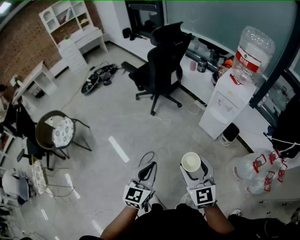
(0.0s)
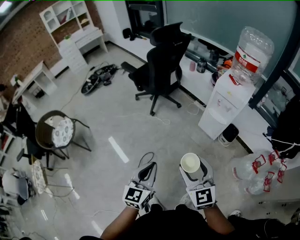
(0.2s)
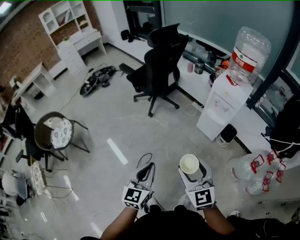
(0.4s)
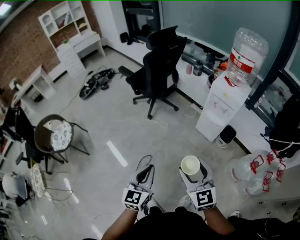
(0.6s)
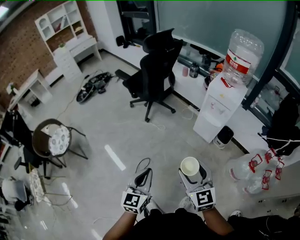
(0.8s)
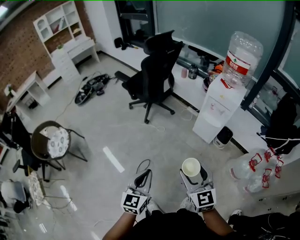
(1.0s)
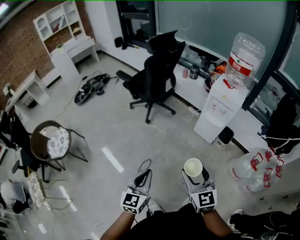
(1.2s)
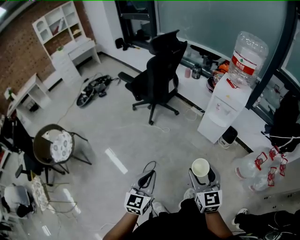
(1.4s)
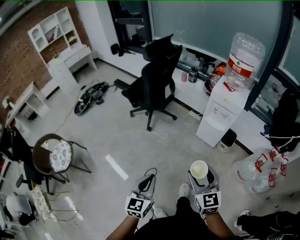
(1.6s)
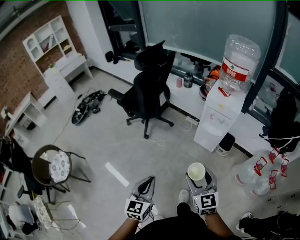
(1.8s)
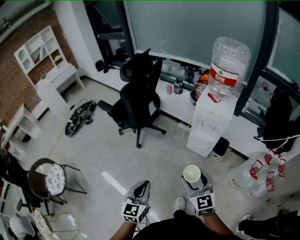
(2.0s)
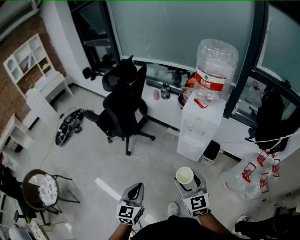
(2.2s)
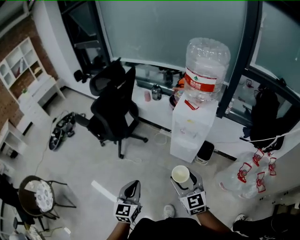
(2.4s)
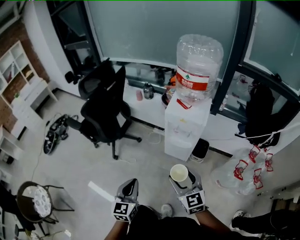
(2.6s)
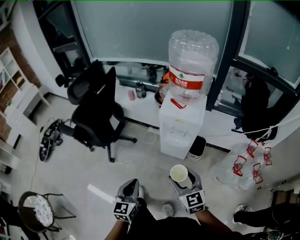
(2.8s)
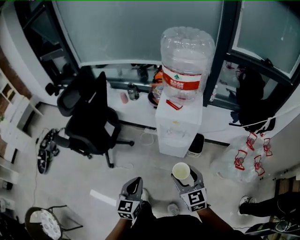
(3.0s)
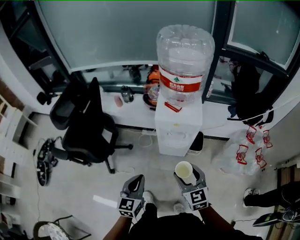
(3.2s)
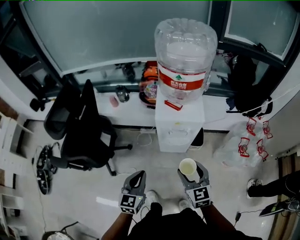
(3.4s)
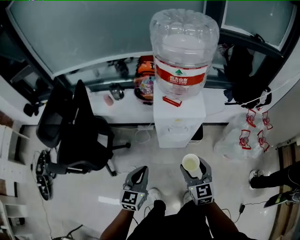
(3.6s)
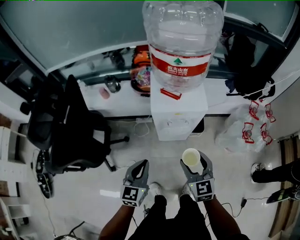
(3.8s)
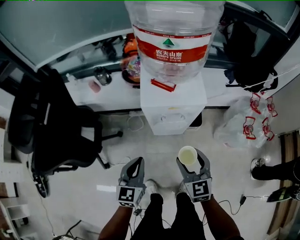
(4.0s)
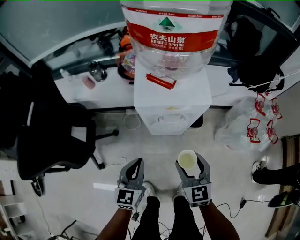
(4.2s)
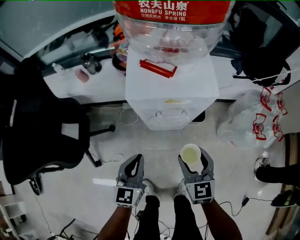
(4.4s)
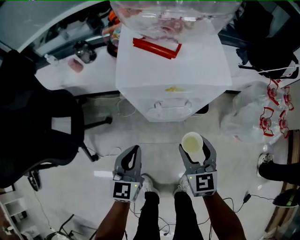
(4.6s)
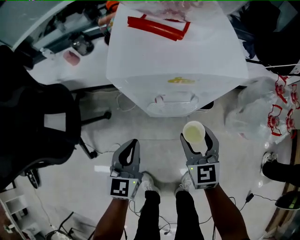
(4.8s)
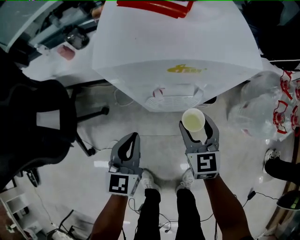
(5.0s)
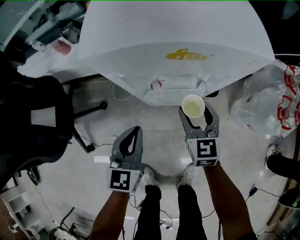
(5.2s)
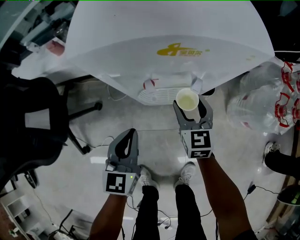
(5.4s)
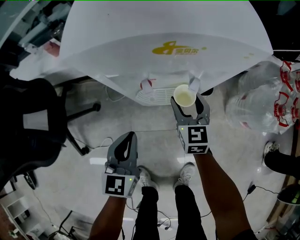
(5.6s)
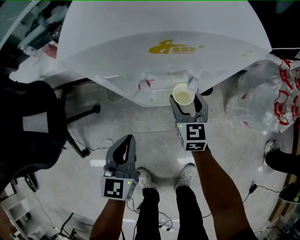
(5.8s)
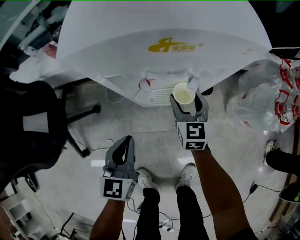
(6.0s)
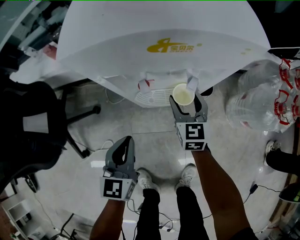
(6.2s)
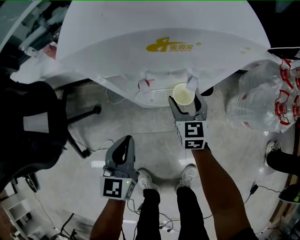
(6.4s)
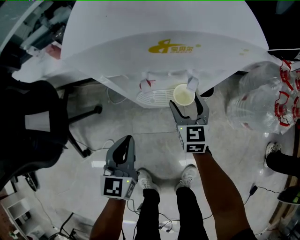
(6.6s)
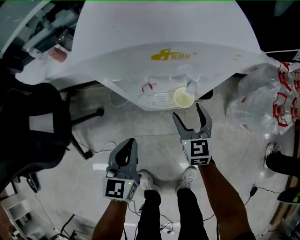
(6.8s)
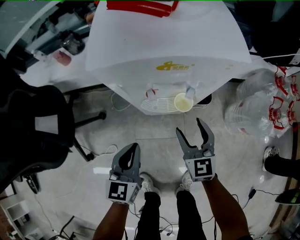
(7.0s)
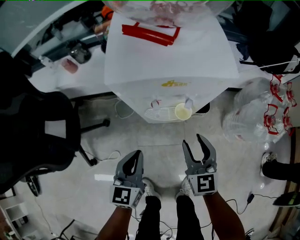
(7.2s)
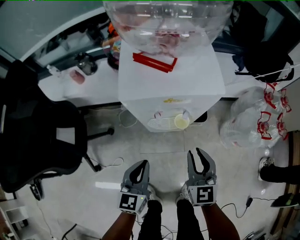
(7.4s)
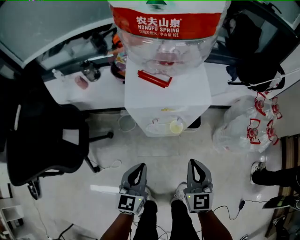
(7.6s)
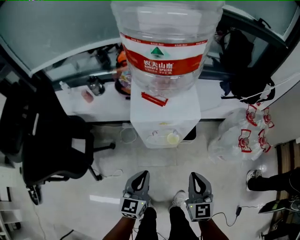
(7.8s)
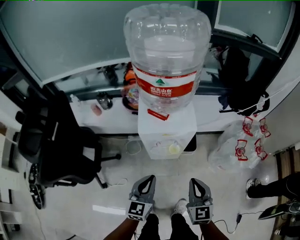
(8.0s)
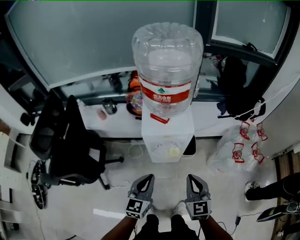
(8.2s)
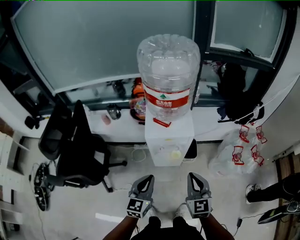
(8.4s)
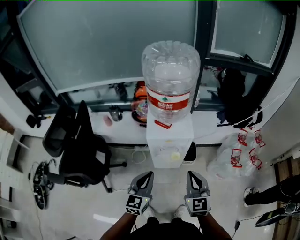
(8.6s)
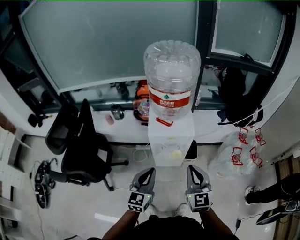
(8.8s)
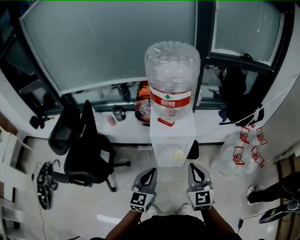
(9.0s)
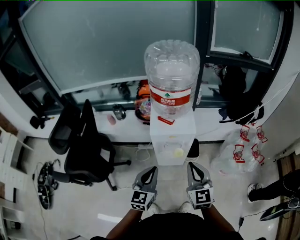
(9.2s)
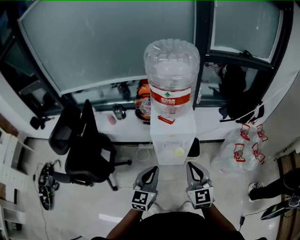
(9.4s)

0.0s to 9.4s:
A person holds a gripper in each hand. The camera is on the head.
0.0s to 1.6s: The left gripper goes some 5 cm to the left.
1.6s to 3.2s: The left gripper shifts roughly 40 cm forward, and swivels some 30 degrees; the right gripper shifts roughly 35 cm forward and to the right, and rotates some 20 degrees.
3.2s to 4.8s: The grippers both shift downward and forward by roughly 30 cm.
4.8s to 6.2s: The left gripper heads downward, covering about 5 cm; the right gripper heads downward and forward, covering roughly 15 cm.
6.2s to 7.8s: The right gripper heads upward and backward, covering some 35 cm, and closes, while the left gripper is displaced upward by approximately 20 cm.
7.8s to 9.4s: The two grippers go about 20 cm upward.

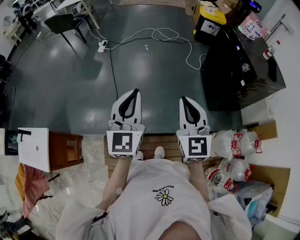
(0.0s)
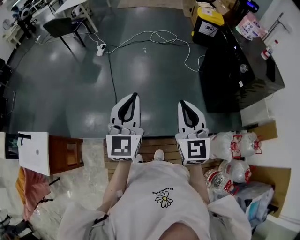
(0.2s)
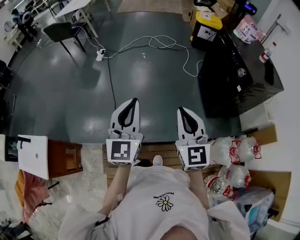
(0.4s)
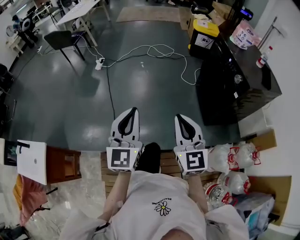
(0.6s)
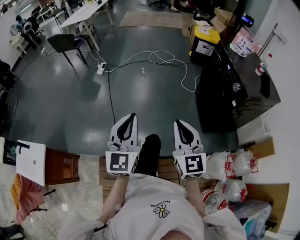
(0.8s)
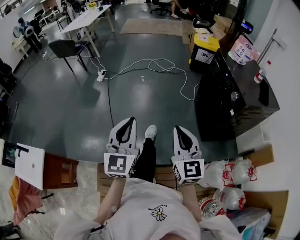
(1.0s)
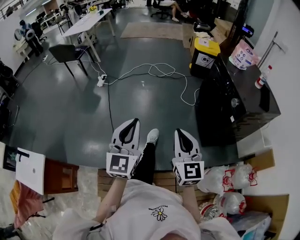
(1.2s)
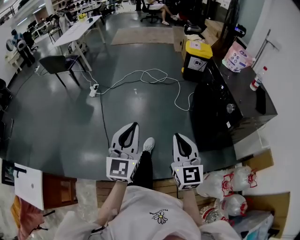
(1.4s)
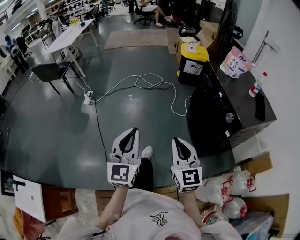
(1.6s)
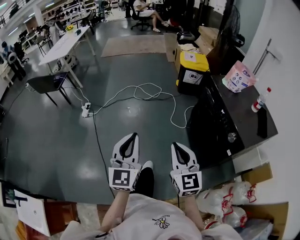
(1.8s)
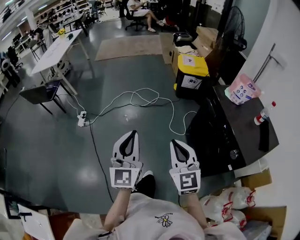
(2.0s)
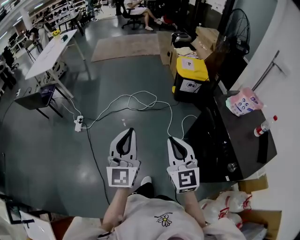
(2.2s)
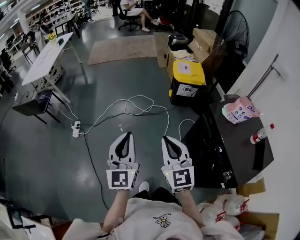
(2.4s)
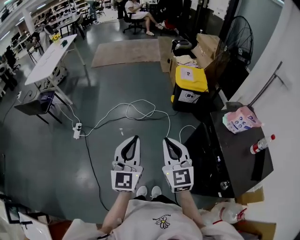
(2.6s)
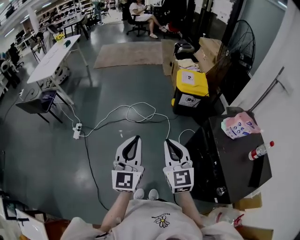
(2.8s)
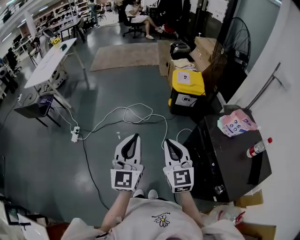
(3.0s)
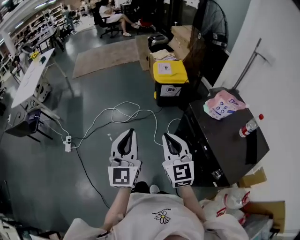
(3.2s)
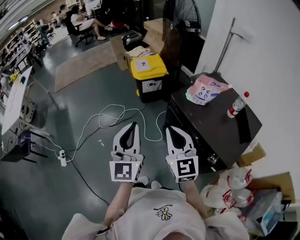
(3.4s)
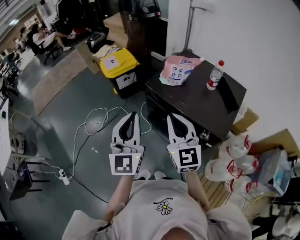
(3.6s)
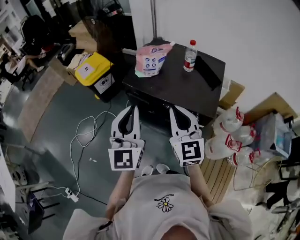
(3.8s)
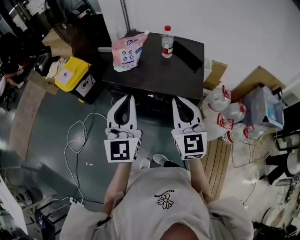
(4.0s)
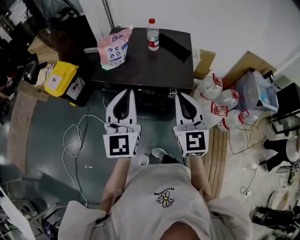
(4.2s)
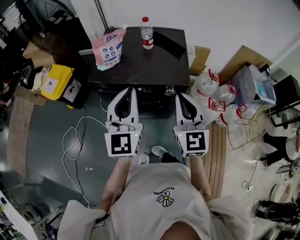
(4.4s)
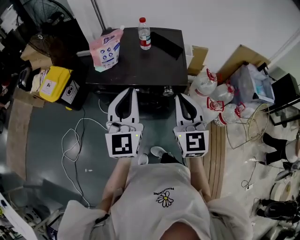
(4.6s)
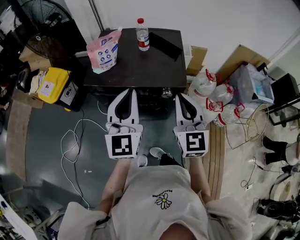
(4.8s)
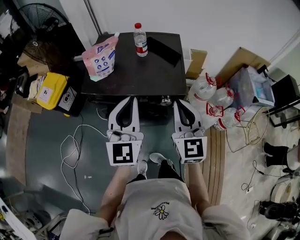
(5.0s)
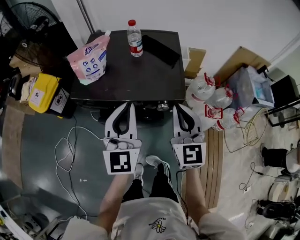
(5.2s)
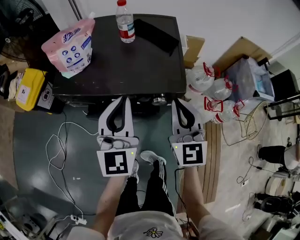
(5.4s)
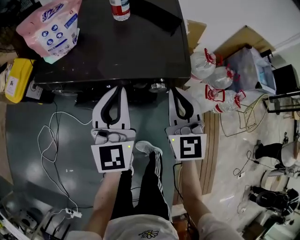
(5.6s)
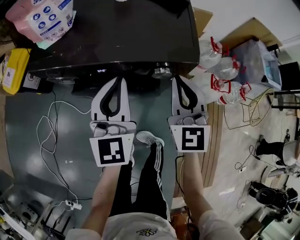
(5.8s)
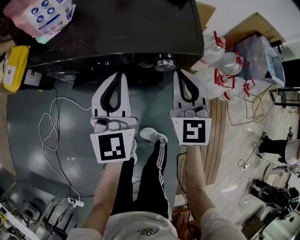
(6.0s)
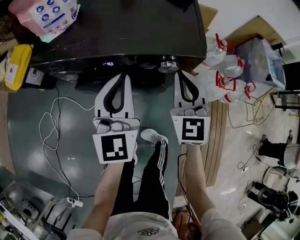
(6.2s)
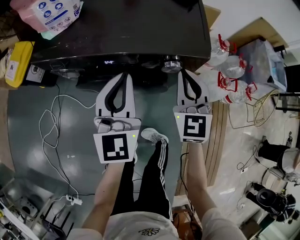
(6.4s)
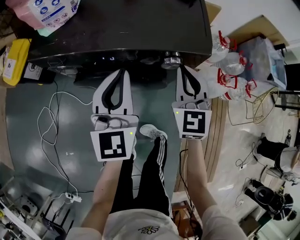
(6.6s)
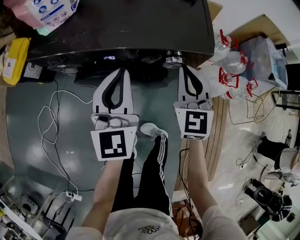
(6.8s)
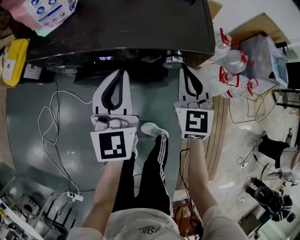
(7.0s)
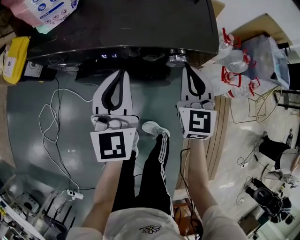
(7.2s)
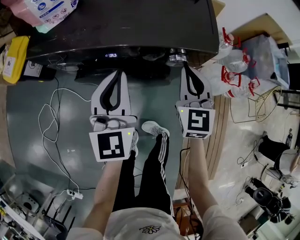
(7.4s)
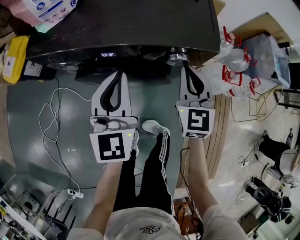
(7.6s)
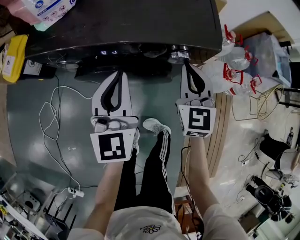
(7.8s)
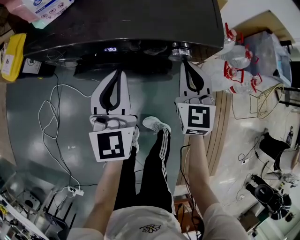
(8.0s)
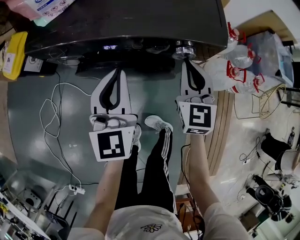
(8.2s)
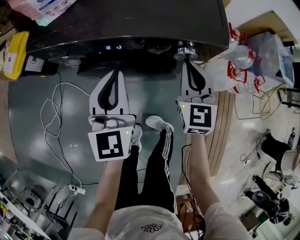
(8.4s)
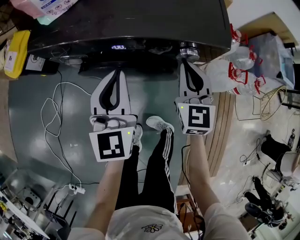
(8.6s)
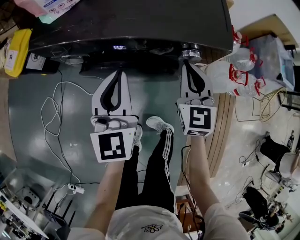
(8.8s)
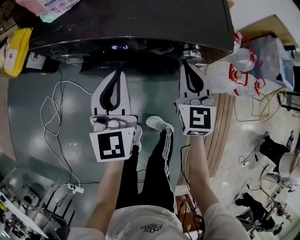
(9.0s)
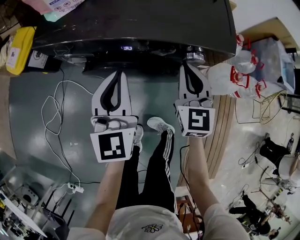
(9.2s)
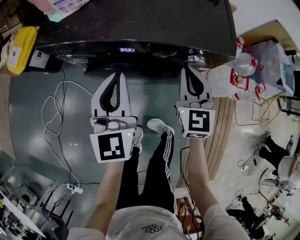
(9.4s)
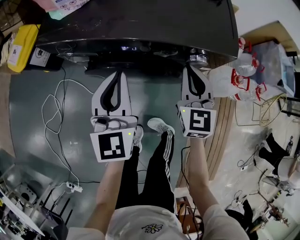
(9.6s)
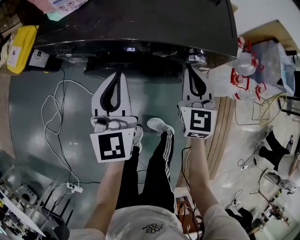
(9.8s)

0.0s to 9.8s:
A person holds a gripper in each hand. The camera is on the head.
0.0s to 1.4s: The two grippers go roughly 15 cm forward and to the right.
1.4s to 2.8s: The pair of grippers is taken forward, about 50 cm.
2.8s to 4.2s: The right gripper moves approximately 35 cm, and turns by approximately 80 degrees. The left gripper shifts by approximately 35 cm, and turns by approximately 70 degrees.
4.2s to 5.6s: The two grippers go approximately 20 cm downward and forward.
5.6s to 7.0s: The grippers both shift downward by roughly 10 cm.
7.0s to 8.4s: There are only small adjustments of the grippers.
8.4s to 9.8s: The grippers stay close to where they were, moving slightly.

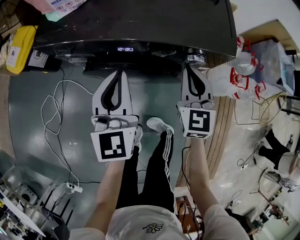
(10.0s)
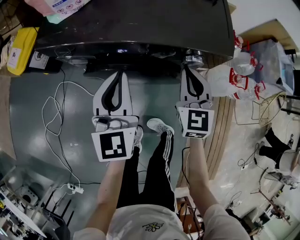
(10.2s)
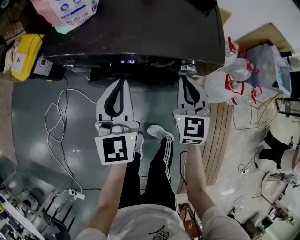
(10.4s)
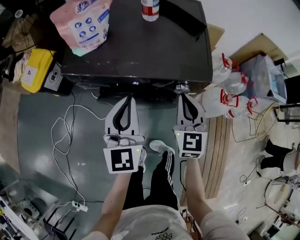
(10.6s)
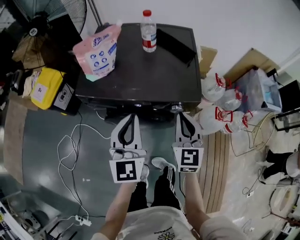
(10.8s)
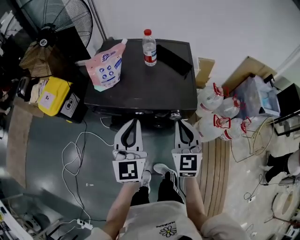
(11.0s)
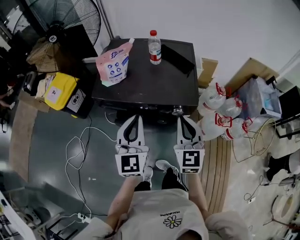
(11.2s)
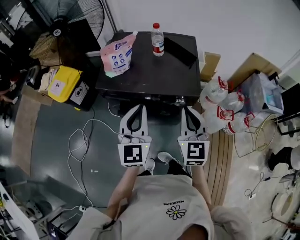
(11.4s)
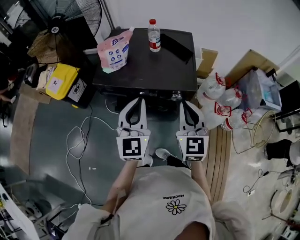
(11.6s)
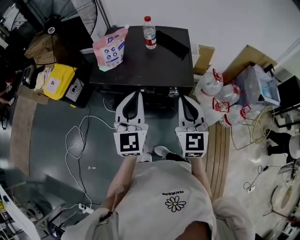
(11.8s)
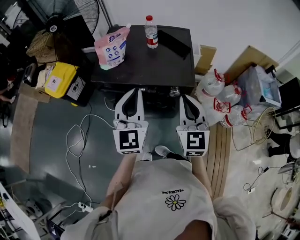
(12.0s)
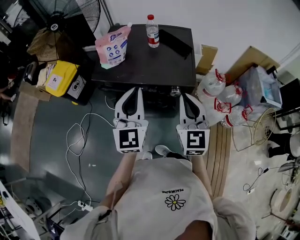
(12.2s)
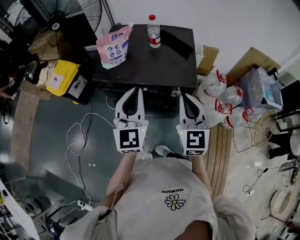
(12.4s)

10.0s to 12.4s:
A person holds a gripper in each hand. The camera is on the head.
10.0s to 11.2s: The two grippers go some 20 cm upward.
11.2s to 12.4s: The grippers move only a little.

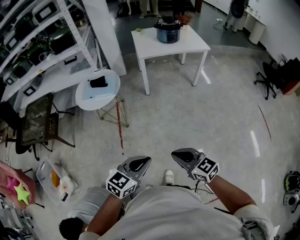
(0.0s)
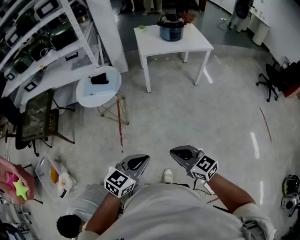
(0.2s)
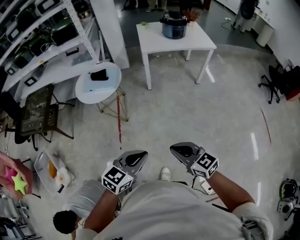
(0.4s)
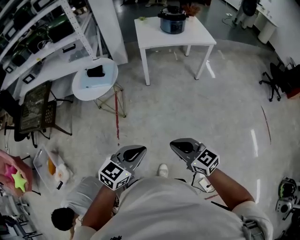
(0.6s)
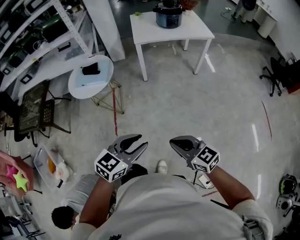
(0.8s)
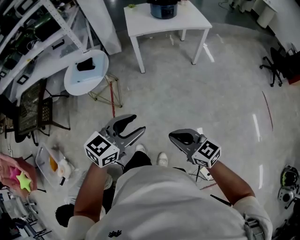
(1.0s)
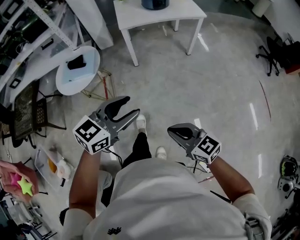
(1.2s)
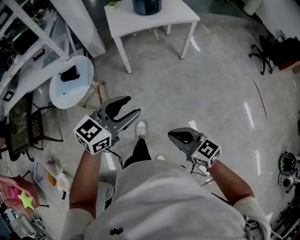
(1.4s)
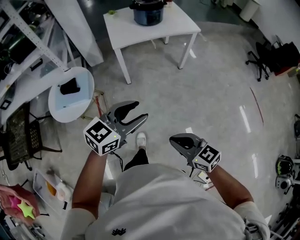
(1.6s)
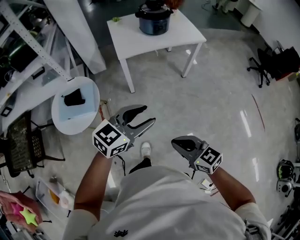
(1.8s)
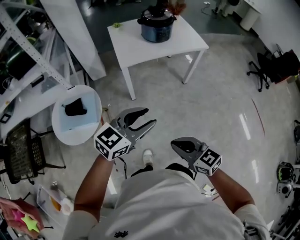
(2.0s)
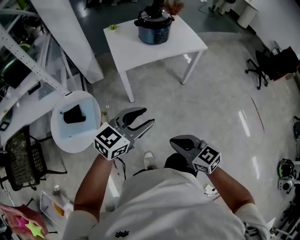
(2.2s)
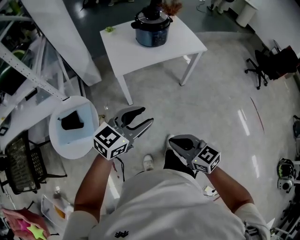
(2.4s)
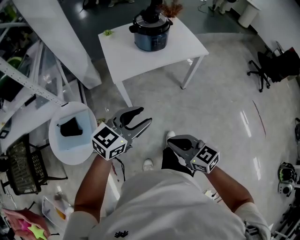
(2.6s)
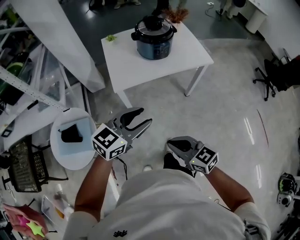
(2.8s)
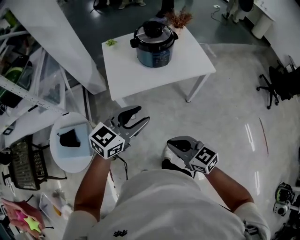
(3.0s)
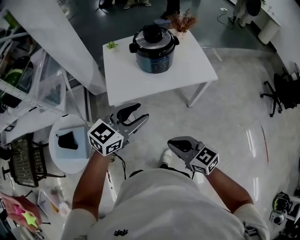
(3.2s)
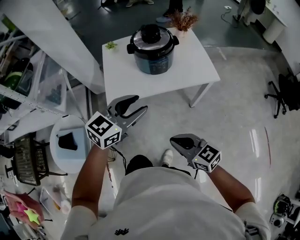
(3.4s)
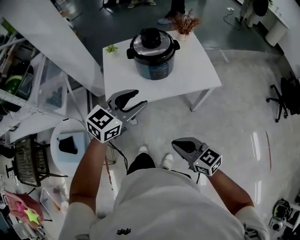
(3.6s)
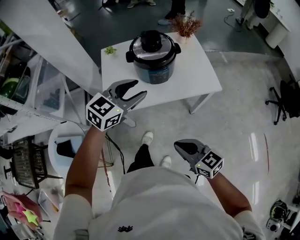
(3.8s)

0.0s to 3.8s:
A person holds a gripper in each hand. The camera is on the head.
0.0s to 1.2s: The right gripper shifts roughly 15 cm forward and to the right, while the left gripper goes roughly 20 cm forward and to the right, and opens up.
1.2s to 2.6s: The two grippers go some 40 cm forward.
2.6s to 3.8s: The right gripper is displaced forward and to the right by about 30 cm. Meanwhile the left gripper goes about 35 cm forward.
